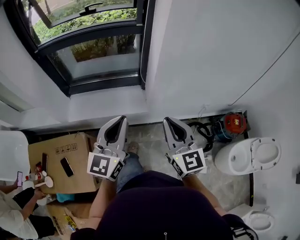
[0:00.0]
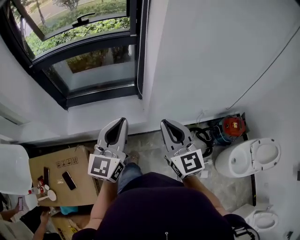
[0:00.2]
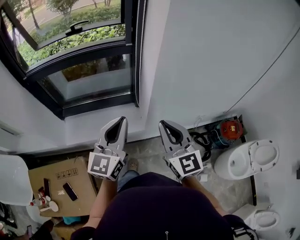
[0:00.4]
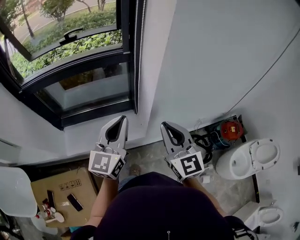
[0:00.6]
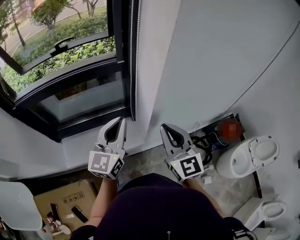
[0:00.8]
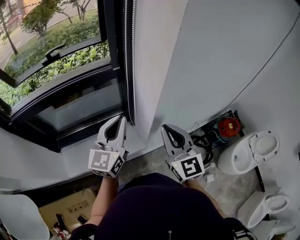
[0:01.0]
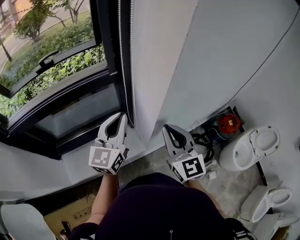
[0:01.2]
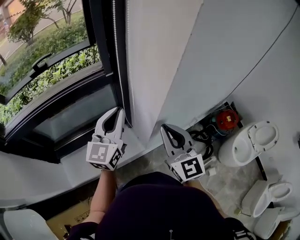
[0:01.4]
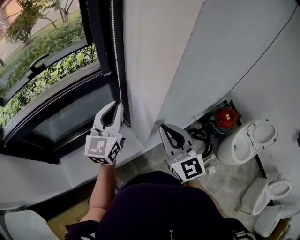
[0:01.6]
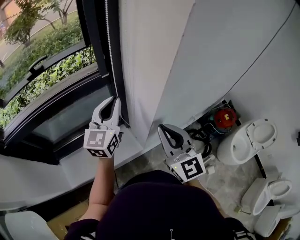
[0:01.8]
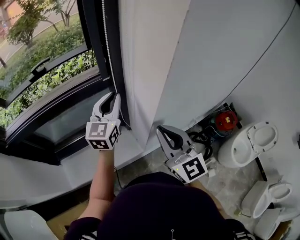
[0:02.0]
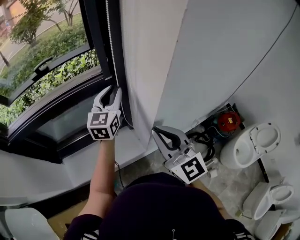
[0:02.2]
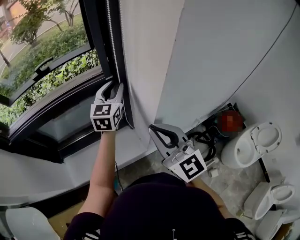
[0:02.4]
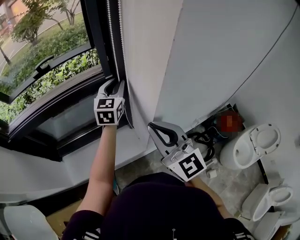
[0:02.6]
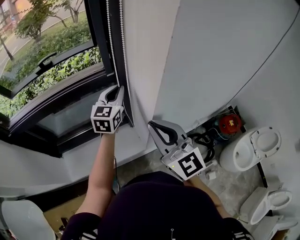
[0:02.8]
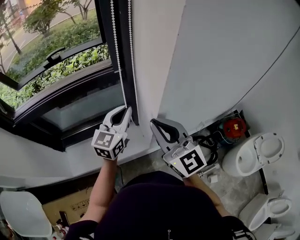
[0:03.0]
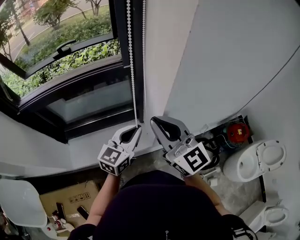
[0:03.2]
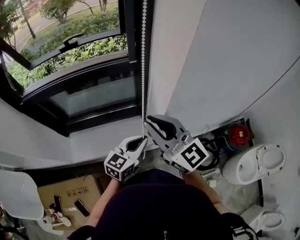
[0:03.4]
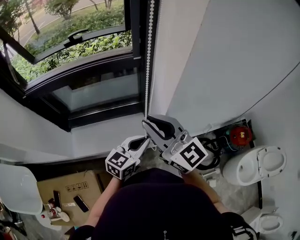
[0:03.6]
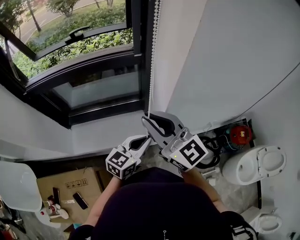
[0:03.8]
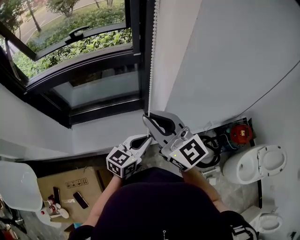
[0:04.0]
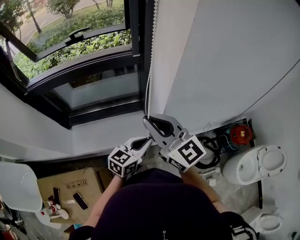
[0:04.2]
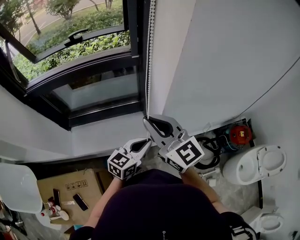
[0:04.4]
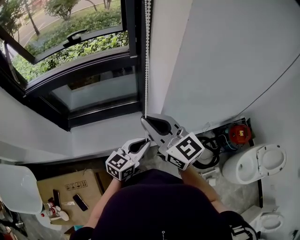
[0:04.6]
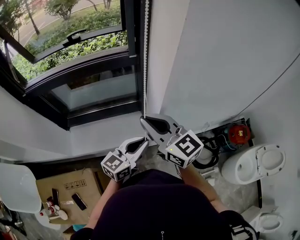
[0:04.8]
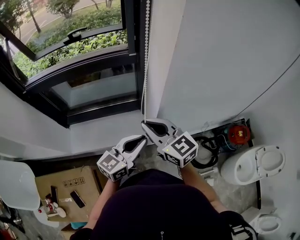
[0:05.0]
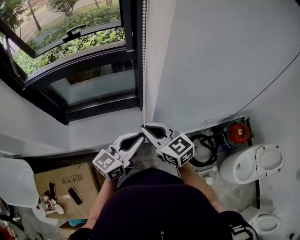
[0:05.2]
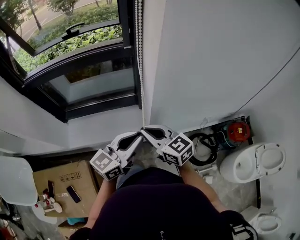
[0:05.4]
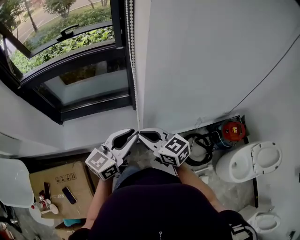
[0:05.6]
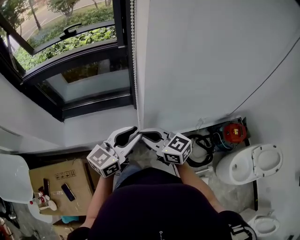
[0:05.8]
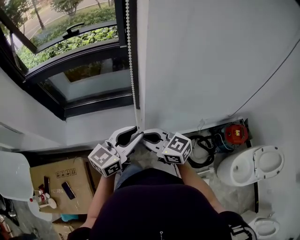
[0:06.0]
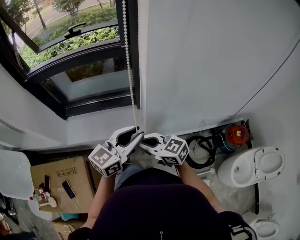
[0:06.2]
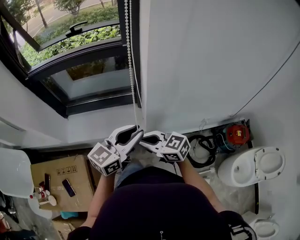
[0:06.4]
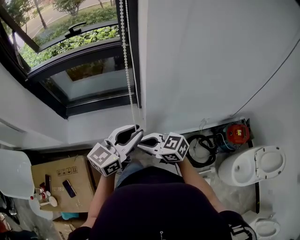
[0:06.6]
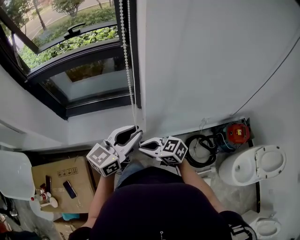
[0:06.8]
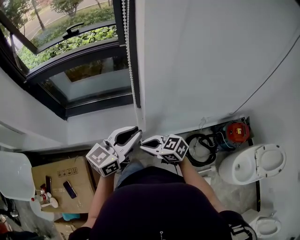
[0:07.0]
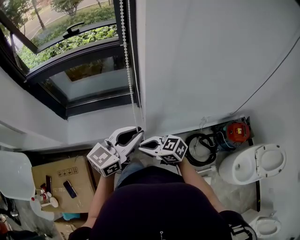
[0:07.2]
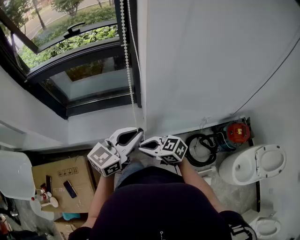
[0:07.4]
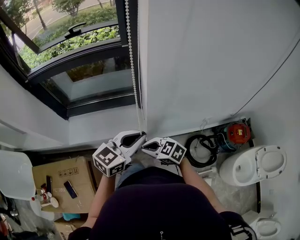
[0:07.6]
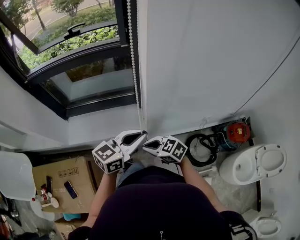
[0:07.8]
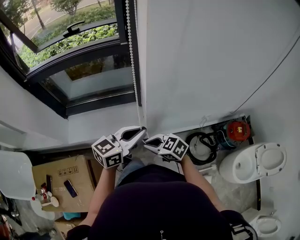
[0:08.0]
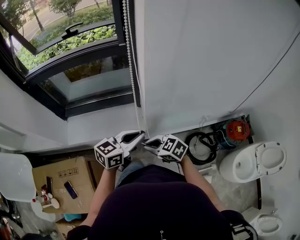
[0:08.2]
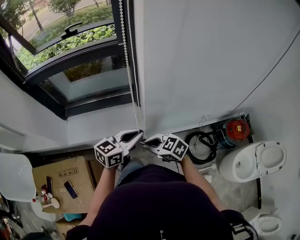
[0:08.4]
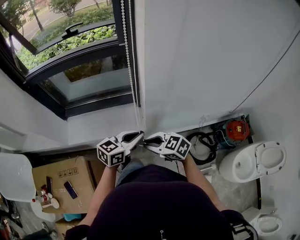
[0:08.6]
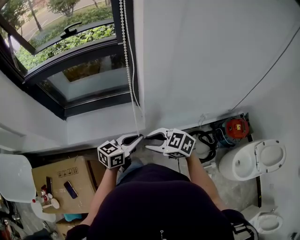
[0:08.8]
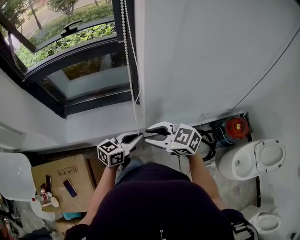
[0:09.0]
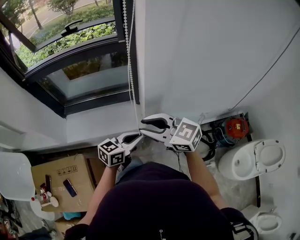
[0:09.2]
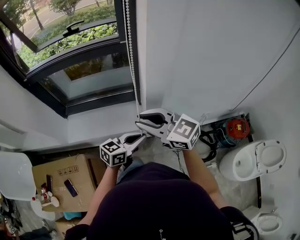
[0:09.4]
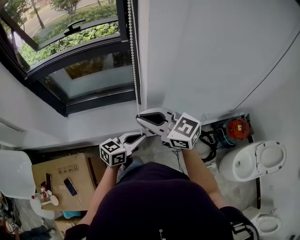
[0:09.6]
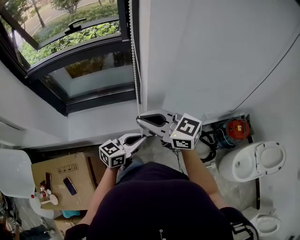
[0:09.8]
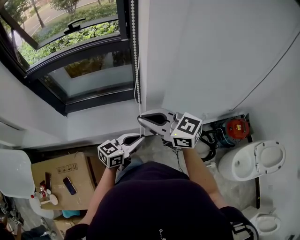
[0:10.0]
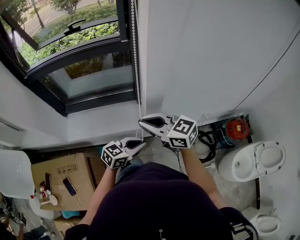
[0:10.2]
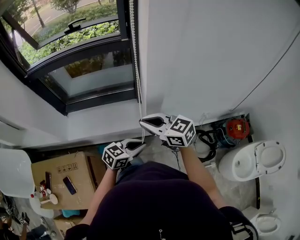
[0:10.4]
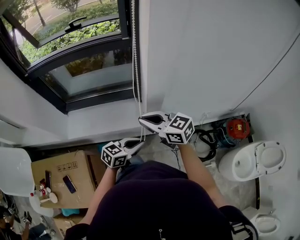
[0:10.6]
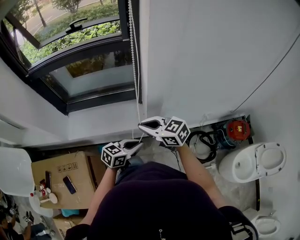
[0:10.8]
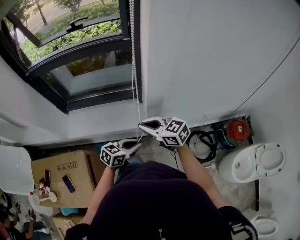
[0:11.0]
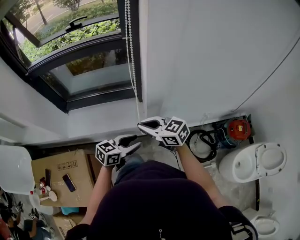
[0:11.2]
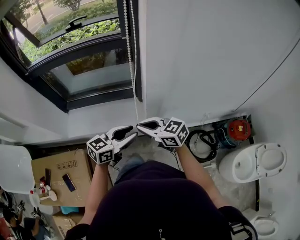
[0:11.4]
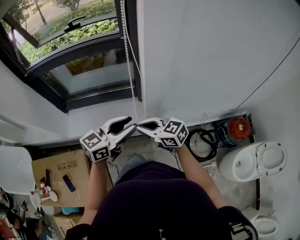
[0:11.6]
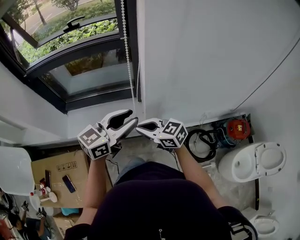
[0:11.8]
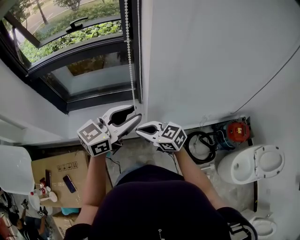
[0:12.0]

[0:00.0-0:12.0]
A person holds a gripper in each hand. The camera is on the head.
0:00.0 to 0:01.6: The left gripper shifts approximately 35 cm forward. The right gripper is displaced forward by approximately 25 cm.
0:01.6 to 0:03.0: The right gripper goes roughly 5 cm upward, and turns by approximately 20 degrees; the left gripper travels forward and back again, roughly 10 cm each way.
0:03.0 to 0:04.4: The left gripper travels backward and downward by some 20 cm. The right gripper is displaced to the left by about 5 cm.
0:04.4 to 0:06.0: The left gripper goes roughly 10 cm upward. Meanwhile the right gripper is displaced downward and backward by approximately 15 cm, and changes its angle by approximately 30 degrees.
0:06.0 to 0:07.6: The right gripper goes about 10 cm downward, and changes its angle by roughly 20 degrees.
0:07.6 to 0:09.0: The right gripper travels upward by approximately 10 cm. The left gripper goes some 10 cm downward.
0:09.0 to 0:10.4: The left gripper is displaced downward by approximately 5 cm. Meanwhile the right gripper moves approximately 10 cm upward and comes back.
0:10.4 to 0:12.0: The right gripper travels downward by roughly 5 cm. Meanwhile the left gripper moves upward, approximately 20 cm, changes its angle by about 20 degrees, and opens its fingers.

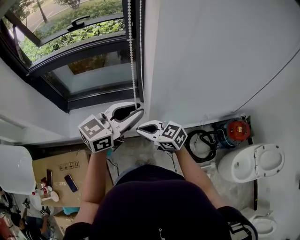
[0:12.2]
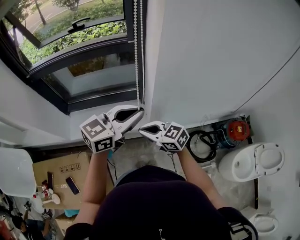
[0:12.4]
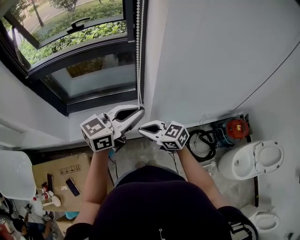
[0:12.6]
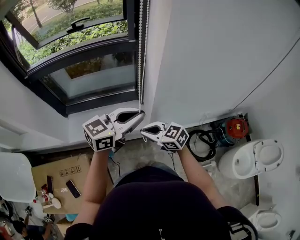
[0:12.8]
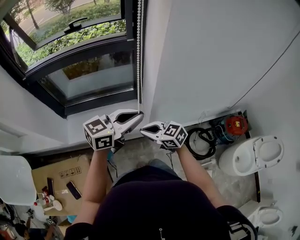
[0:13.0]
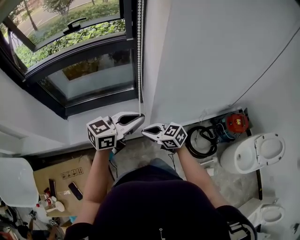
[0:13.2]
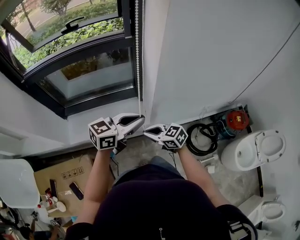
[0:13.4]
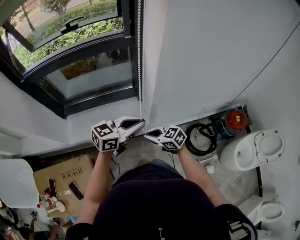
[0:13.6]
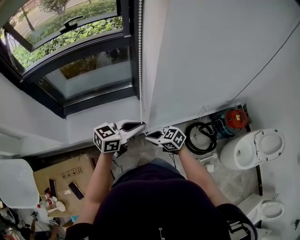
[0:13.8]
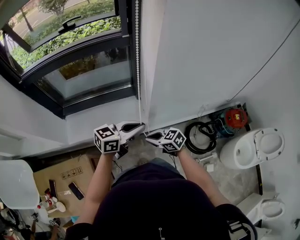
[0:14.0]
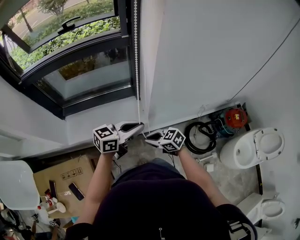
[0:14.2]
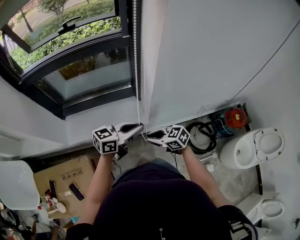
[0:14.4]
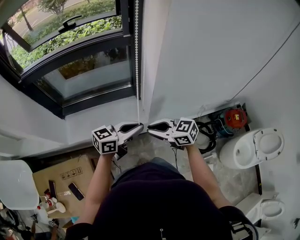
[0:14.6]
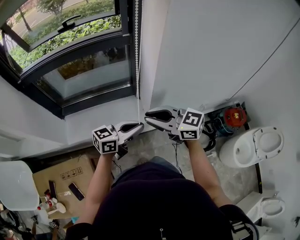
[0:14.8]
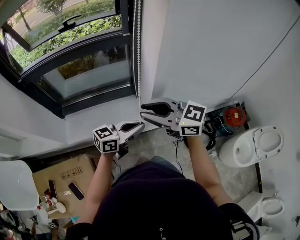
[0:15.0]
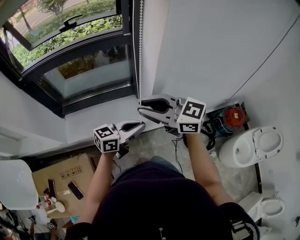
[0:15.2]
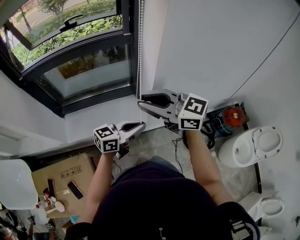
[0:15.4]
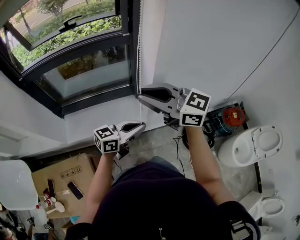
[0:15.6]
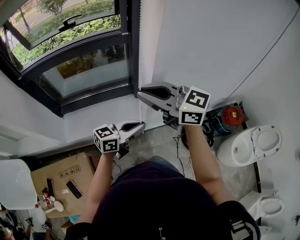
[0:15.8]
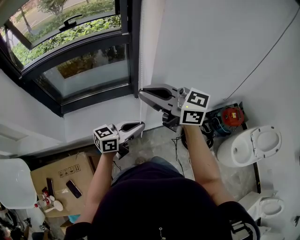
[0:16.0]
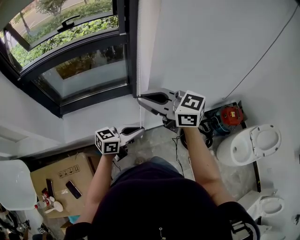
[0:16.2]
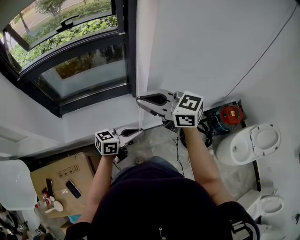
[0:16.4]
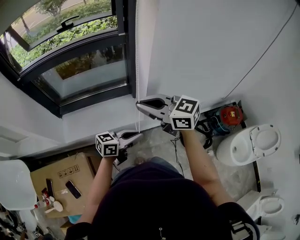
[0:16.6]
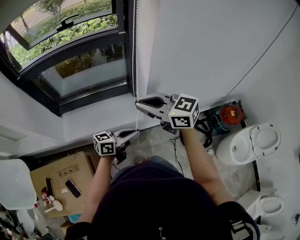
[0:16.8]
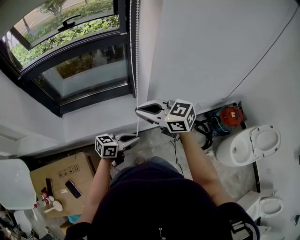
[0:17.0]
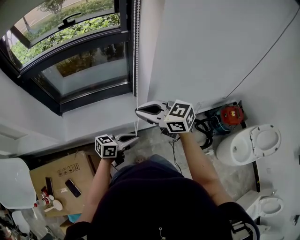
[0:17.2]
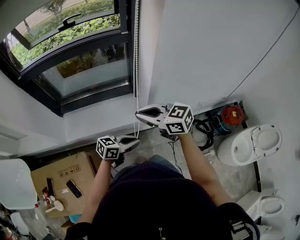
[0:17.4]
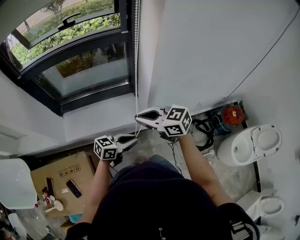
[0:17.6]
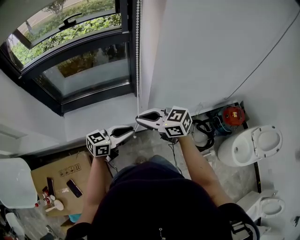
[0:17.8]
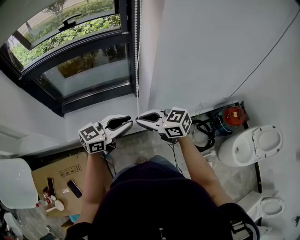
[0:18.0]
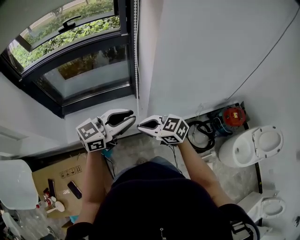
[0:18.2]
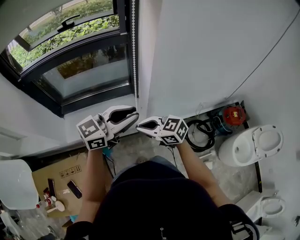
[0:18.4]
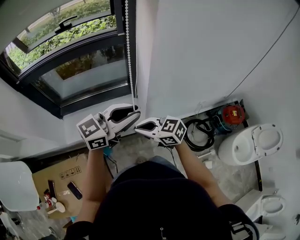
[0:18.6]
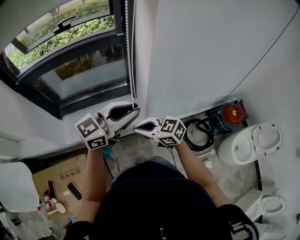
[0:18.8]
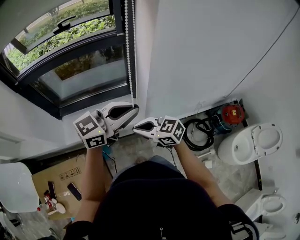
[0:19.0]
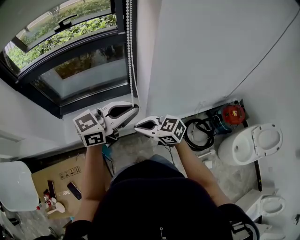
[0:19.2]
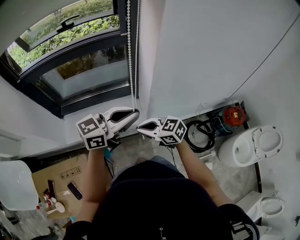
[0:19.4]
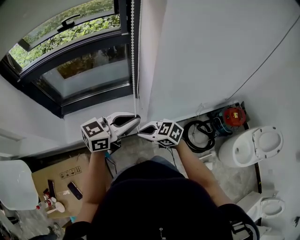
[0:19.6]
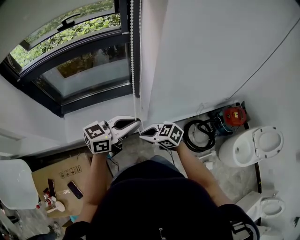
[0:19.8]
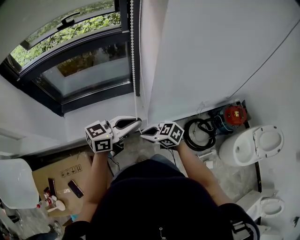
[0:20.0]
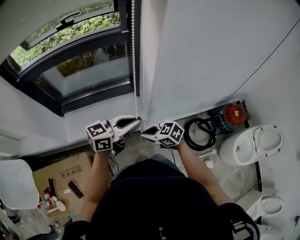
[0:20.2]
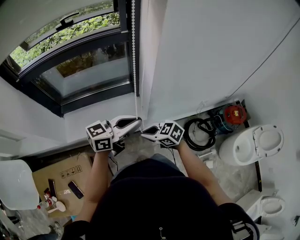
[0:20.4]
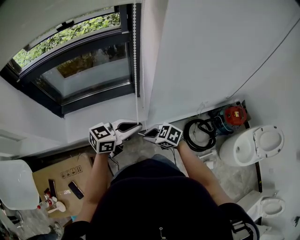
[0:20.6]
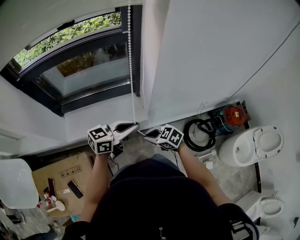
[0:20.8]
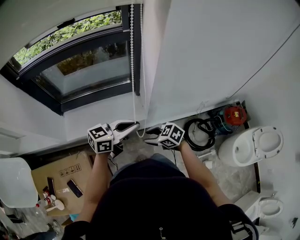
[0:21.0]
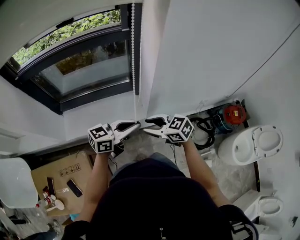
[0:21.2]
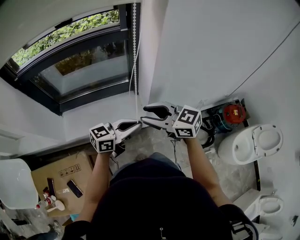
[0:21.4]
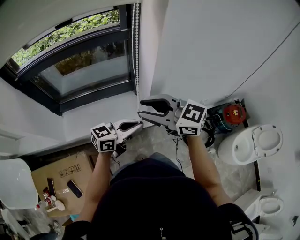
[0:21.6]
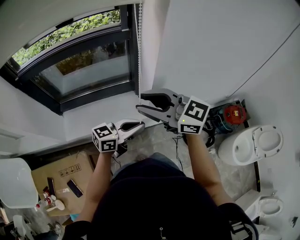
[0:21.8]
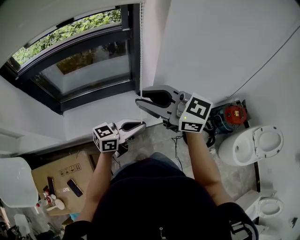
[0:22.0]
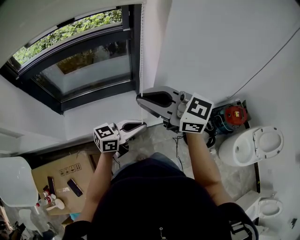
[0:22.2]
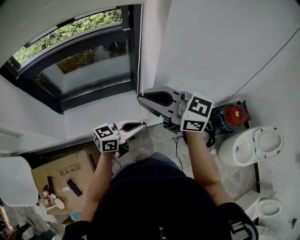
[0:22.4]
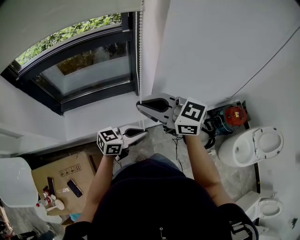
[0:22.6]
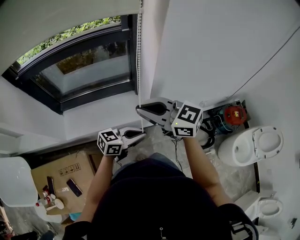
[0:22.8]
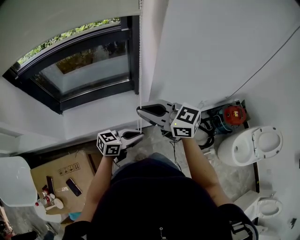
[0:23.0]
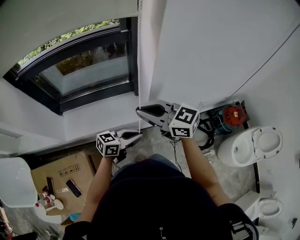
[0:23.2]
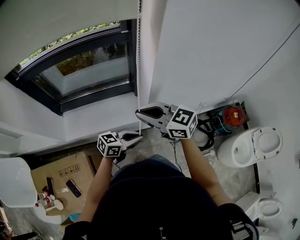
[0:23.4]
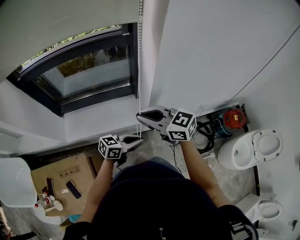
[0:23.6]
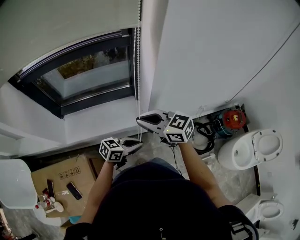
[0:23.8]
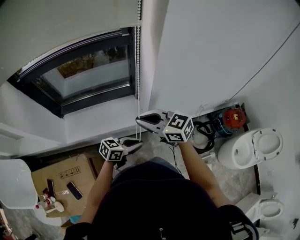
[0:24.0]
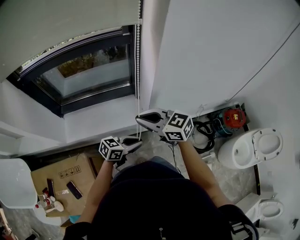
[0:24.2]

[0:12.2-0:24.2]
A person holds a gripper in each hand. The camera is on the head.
0:12.2 to 0:13.8: Both grippers travel together downward, some 15 cm.
0:13.8 to 0:15.2: The right gripper is displaced upward by roughly 30 cm, and changes its angle by some 30 degrees.
0:15.2 to 0:16.6: The right gripper reaches approximately 5 cm upward, then returns. The left gripper shifts roughly 5 cm downward.
0:16.6 to 0:18.2: The right gripper travels downward by some 15 cm, while the left gripper is displaced upward by some 15 cm, and swivels some 30 degrees.
0:18.2 to 0:19.8: The right gripper shifts roughly 10 cm downward.
0:19.8 to 0:21.2: The left gripper moves downward, about 5 cm. The right gripper moves roughly 5 cm, and opens.
0:21.2 to 0:22.6: The left gripper changes place by about 5 cm, while the right gripper heads upward, covering roughly 20 cm, turns by approximately 30 degrees, and closes.
0:22.6 to 0:24.2: The grippers both shift downward by some 10 cm.
